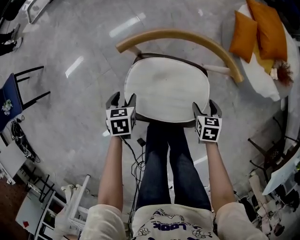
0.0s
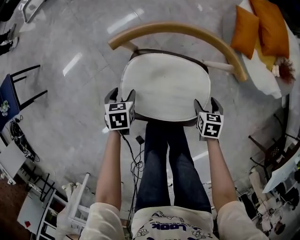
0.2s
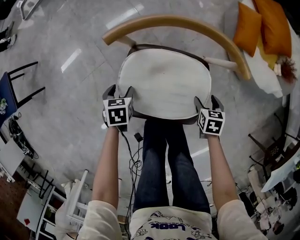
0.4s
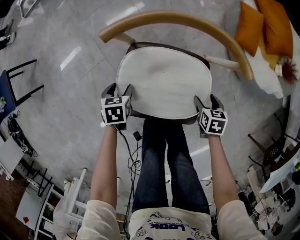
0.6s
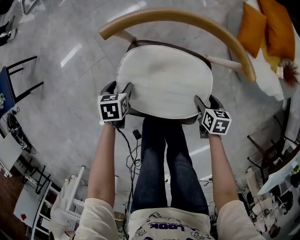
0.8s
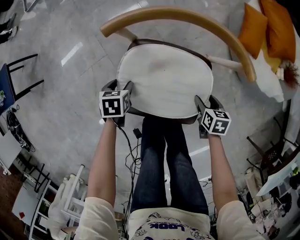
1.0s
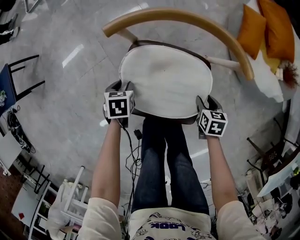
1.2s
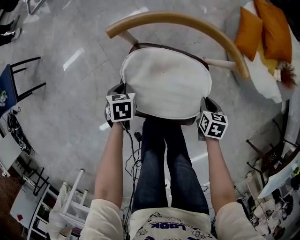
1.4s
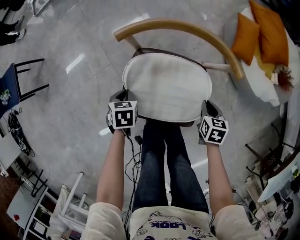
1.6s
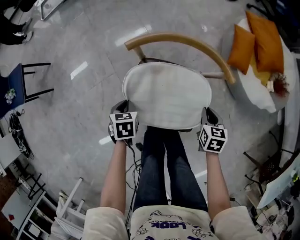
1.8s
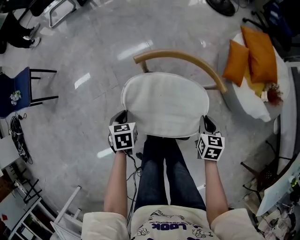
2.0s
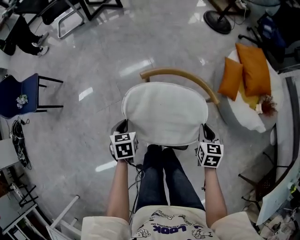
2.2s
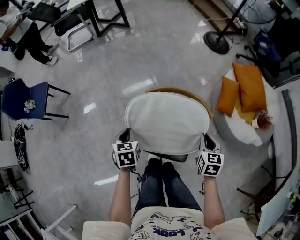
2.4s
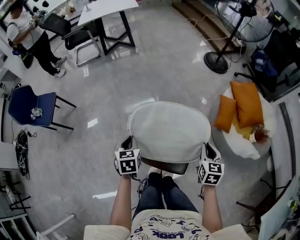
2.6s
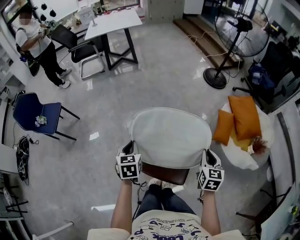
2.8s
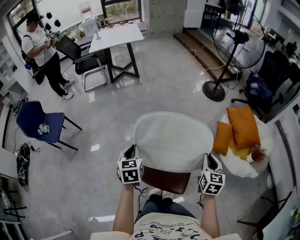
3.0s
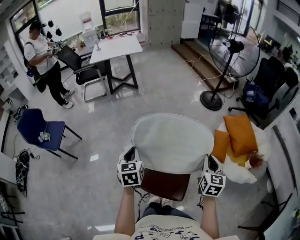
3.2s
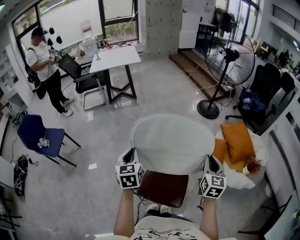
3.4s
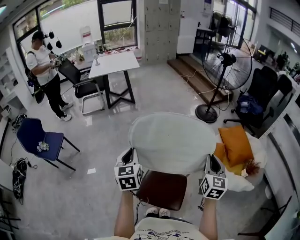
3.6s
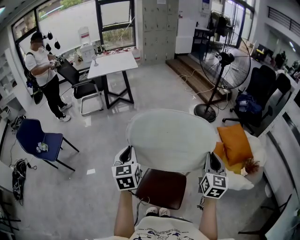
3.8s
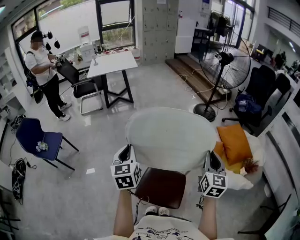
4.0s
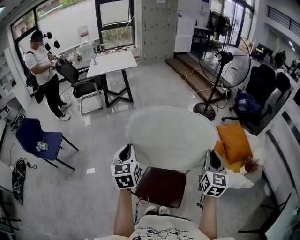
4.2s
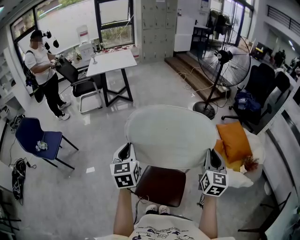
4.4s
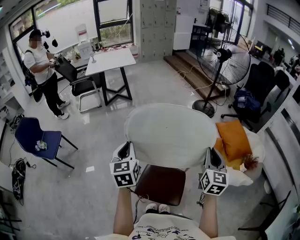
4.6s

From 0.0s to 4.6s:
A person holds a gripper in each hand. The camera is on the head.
From 0.0s to 1.6s: The right gripper goes downward and returns, about 10 cm each way, and closes its fingers, while the left gripper travels downward and back again, about 10 cm each way, and closes.
From 1.6s to 3.0s: The two grippers go approximately 50 cm upward. The left gripper tilts its fingers approximately 40 degrees upward. Meanwhile the right gripper points its fingers about 40 degrees further upward.
From 3.0s to 4.6s: Both grippers travel together upward, roughly 15 cm.

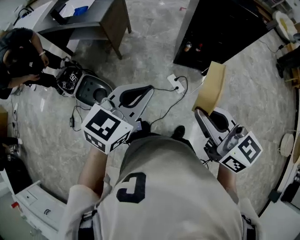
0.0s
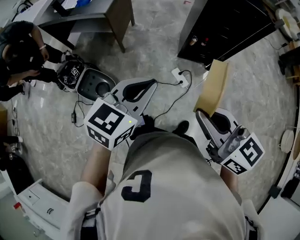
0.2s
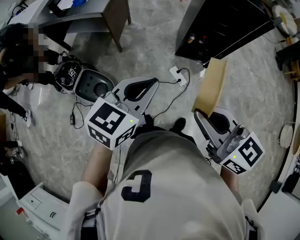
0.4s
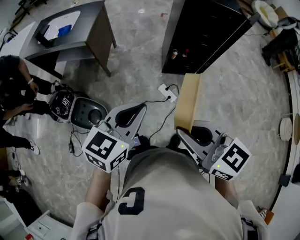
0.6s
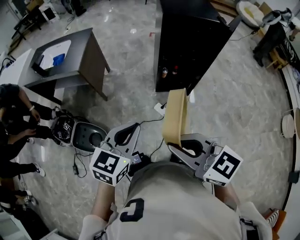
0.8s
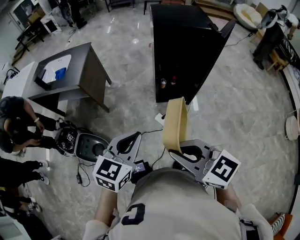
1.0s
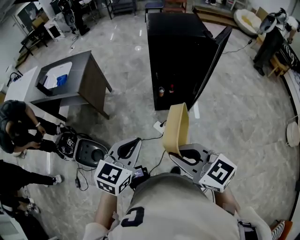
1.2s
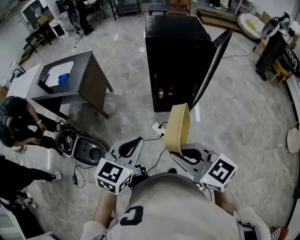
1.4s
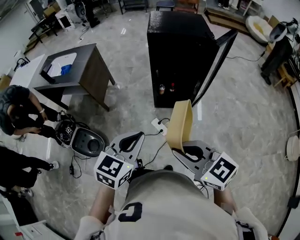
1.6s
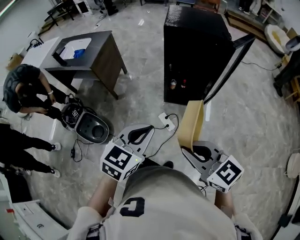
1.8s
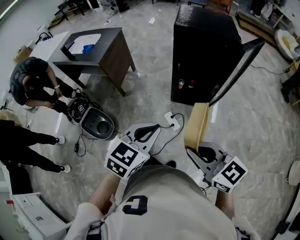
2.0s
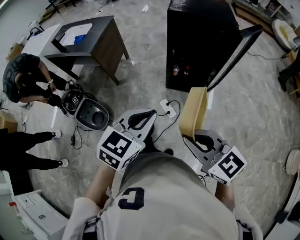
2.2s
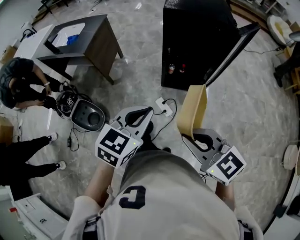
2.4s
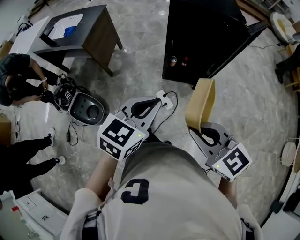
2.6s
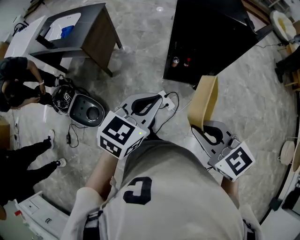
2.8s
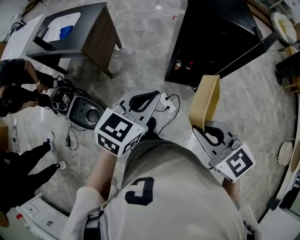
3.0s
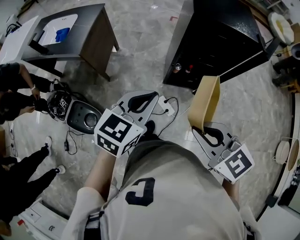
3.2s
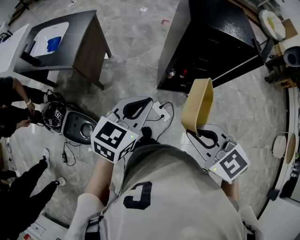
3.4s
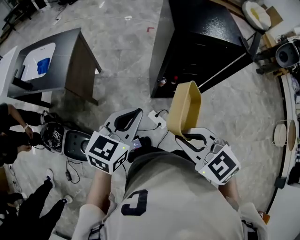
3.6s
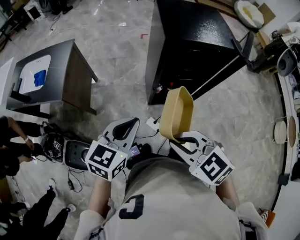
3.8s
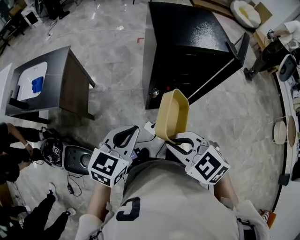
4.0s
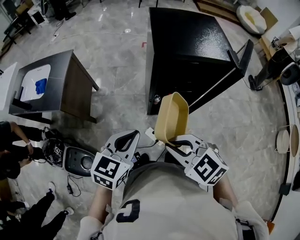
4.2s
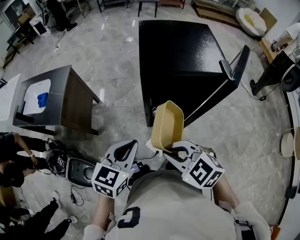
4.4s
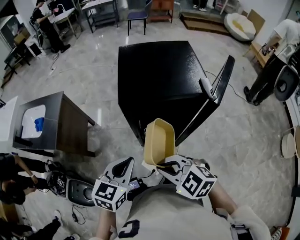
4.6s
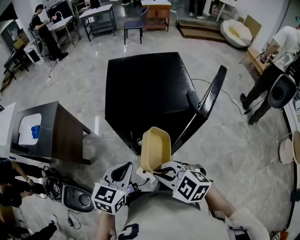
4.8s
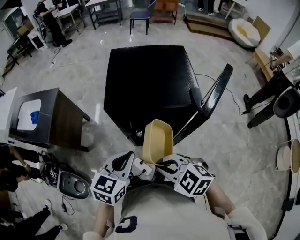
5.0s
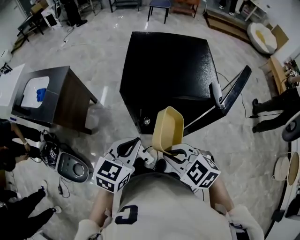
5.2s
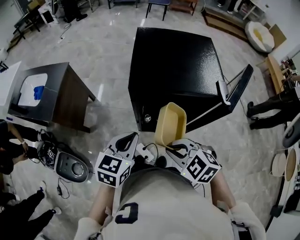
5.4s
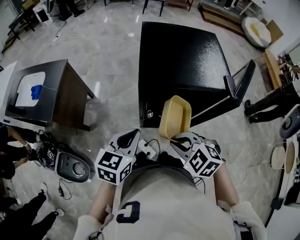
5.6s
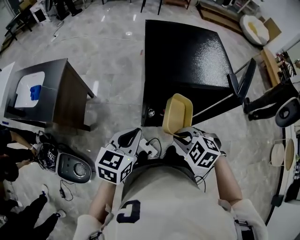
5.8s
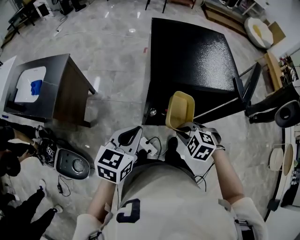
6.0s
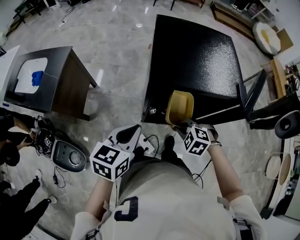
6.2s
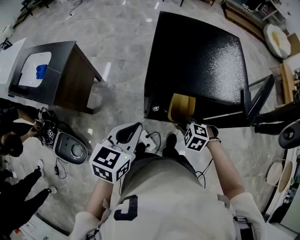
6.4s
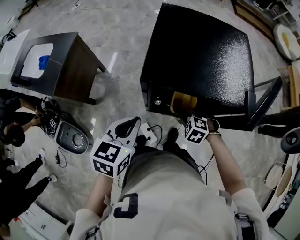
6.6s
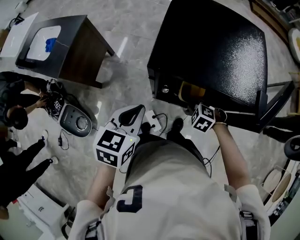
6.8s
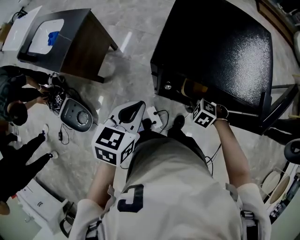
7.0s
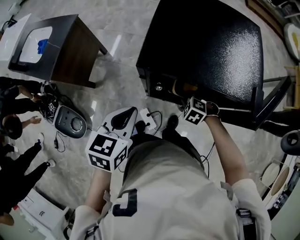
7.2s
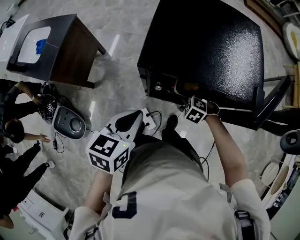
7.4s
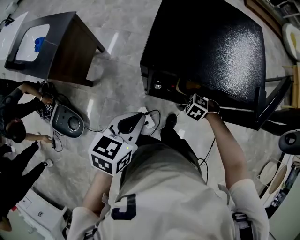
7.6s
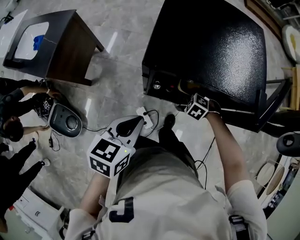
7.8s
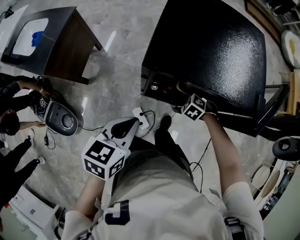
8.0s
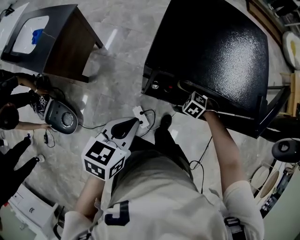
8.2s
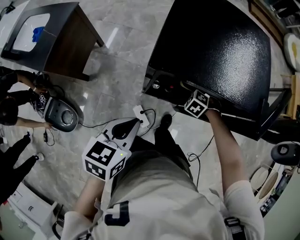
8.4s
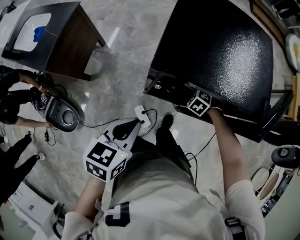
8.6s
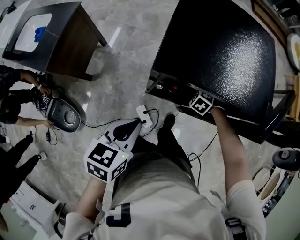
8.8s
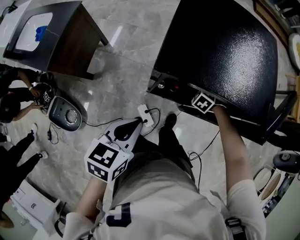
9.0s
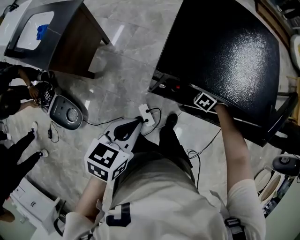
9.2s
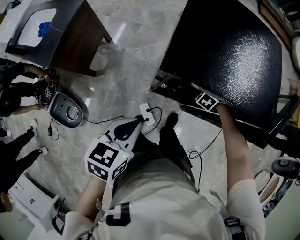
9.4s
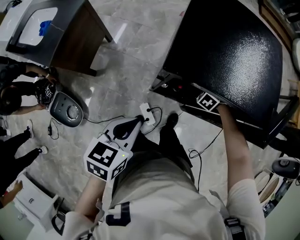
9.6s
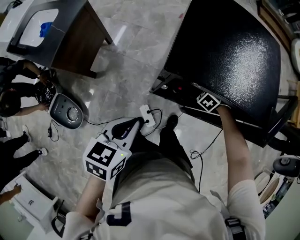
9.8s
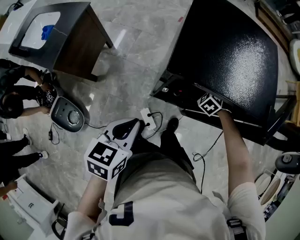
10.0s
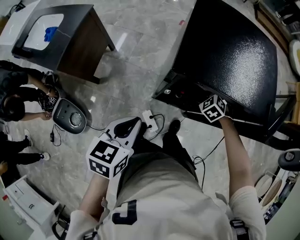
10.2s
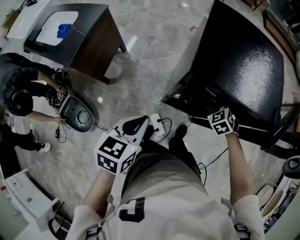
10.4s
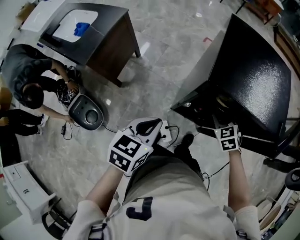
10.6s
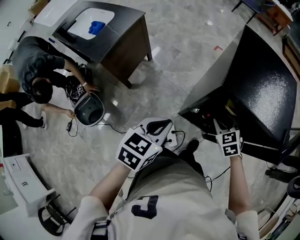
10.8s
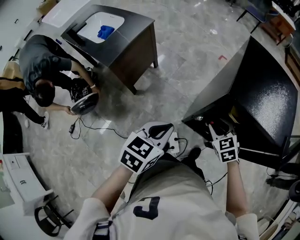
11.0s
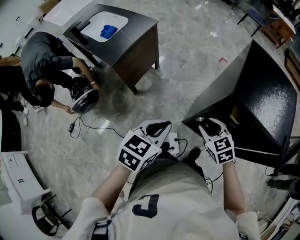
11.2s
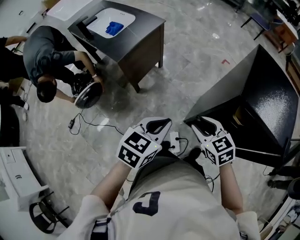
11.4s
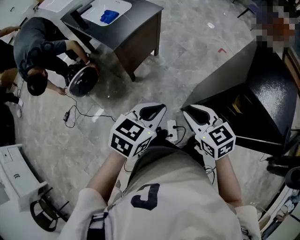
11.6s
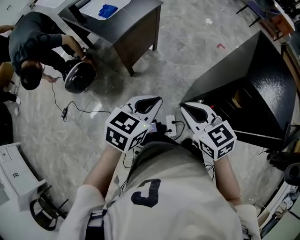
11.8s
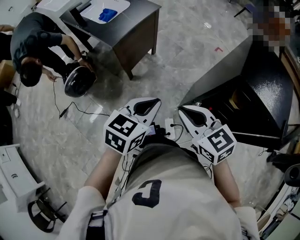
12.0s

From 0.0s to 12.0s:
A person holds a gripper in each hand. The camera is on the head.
From 0.0s to 1.6s: The two grippers go roughly 15 cm to the right.
From 1.6s to 3.0s: The two grippers go roughly 15 cm forward.
From 3.0s to 4.4s: Both grippers move forward, some 15 cm.
From 4.4s to 6.0s: The left gripper is displaced forward by some 10 cm, and goes to the right and returns, about 15 cm each way. Meanwhile the right gripper shifts some 20 cm downward, to the right and forward, and rotates roughly 30 degrees.
From 6.0s to 7.6s: The left gripper ends up about 10 cm from where it was. The right gripper travels downward by roughly 20 cm.
From 7.6s to 9.0s: The right gripper ends up about 10 cm from where it was.
From 9.0s to 10.4s: The left gripper shifts by approximately 5 cm; the right gripper is displaced upward by approximately 10 cm, rotates approximately 20 degrees, and opens.
From 10.4s to 12.0s: The right gripper changes place by roughly 40 cm, rotates some 50 degrees, and closes its fingers; the left gripper ends up approximately 15 cm from where it was.

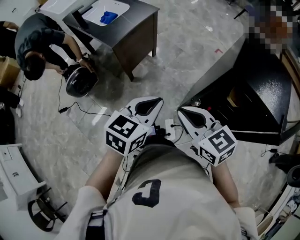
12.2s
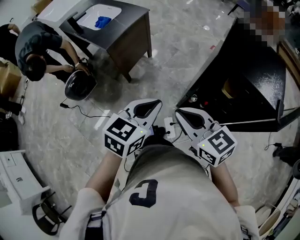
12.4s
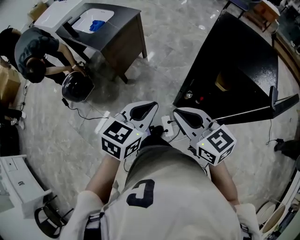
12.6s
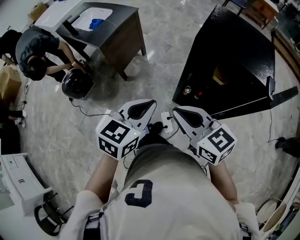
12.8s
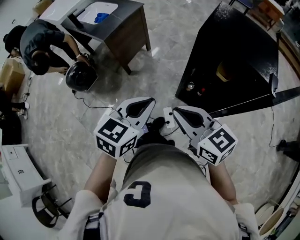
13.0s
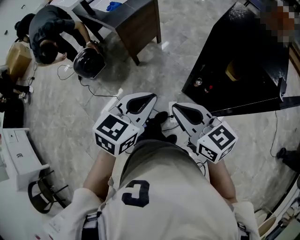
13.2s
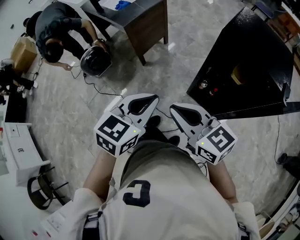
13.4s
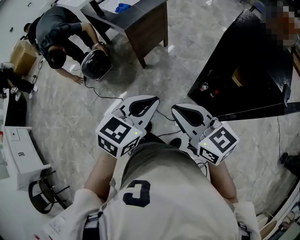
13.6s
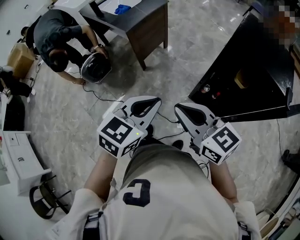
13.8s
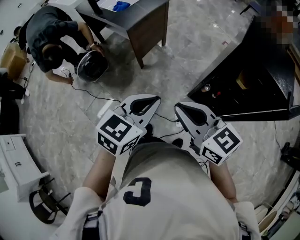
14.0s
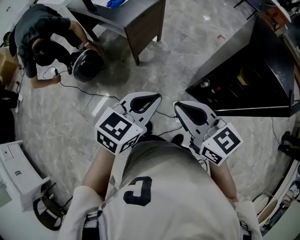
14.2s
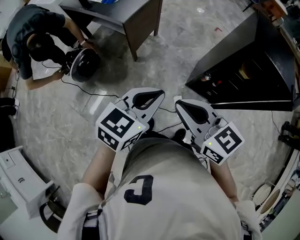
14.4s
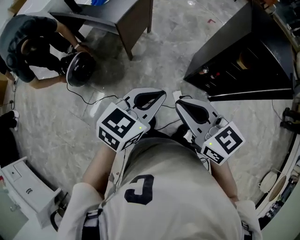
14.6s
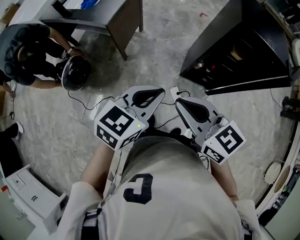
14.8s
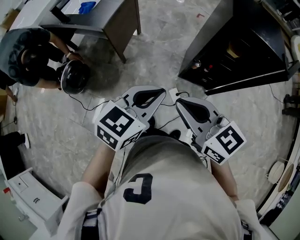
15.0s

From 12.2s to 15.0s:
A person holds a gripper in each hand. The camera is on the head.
From 12.2s to 13.6s: Both grippers travel together backward, approximately 15 cm.
From 13.6s to 15.0s: Both grippers travel together to the left, some 10 cm. The left gripper turns by about 30 degrees. The right gripper swivels approximately 20 degrees.

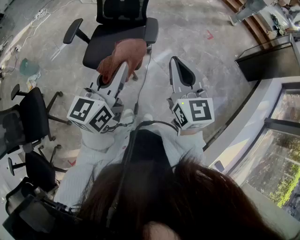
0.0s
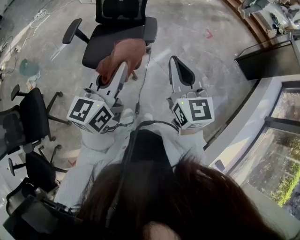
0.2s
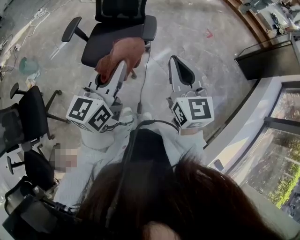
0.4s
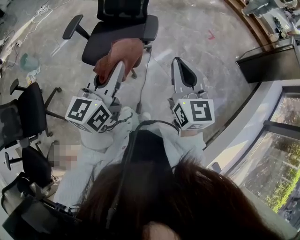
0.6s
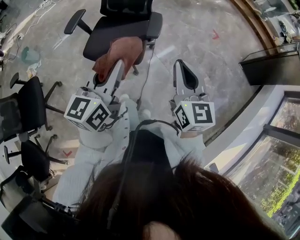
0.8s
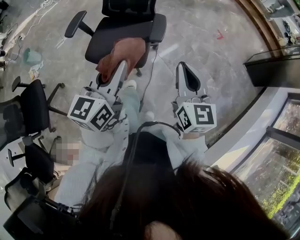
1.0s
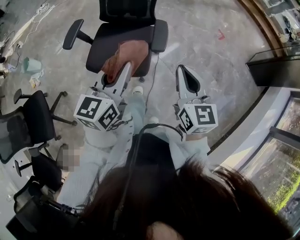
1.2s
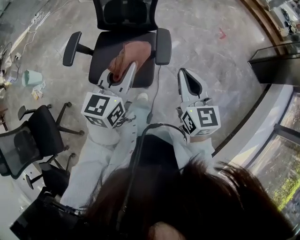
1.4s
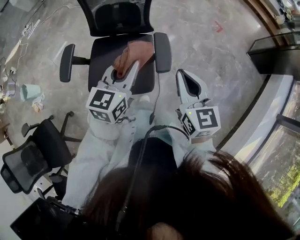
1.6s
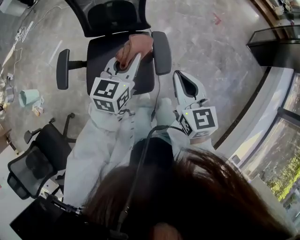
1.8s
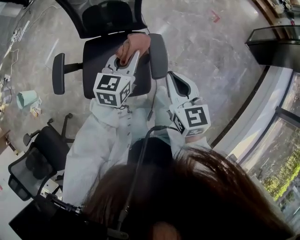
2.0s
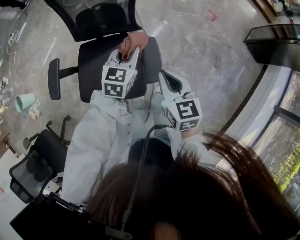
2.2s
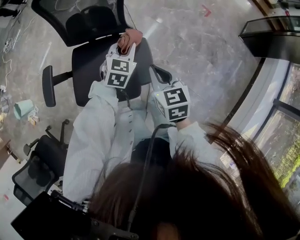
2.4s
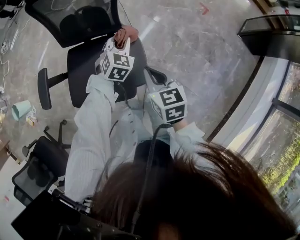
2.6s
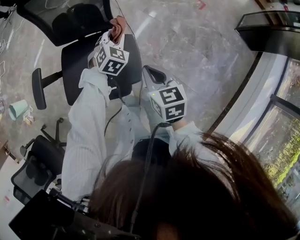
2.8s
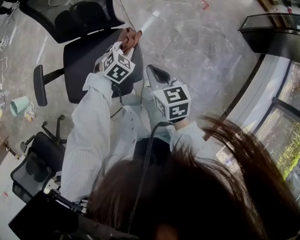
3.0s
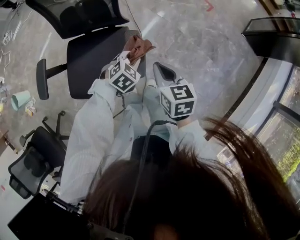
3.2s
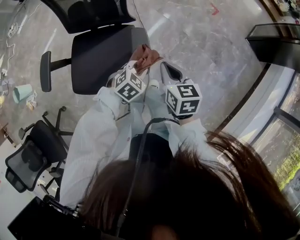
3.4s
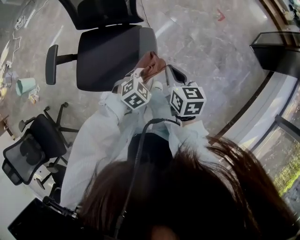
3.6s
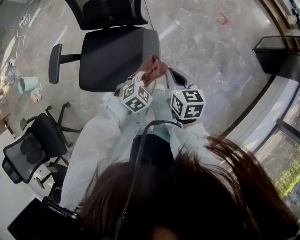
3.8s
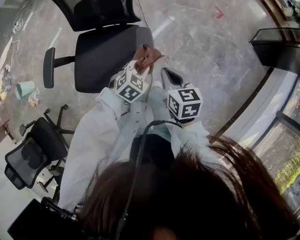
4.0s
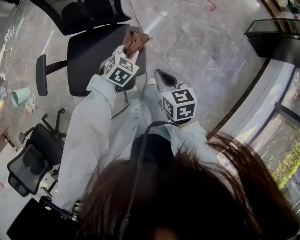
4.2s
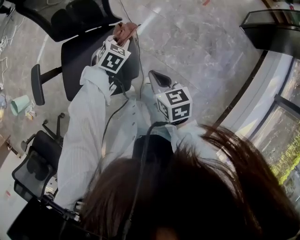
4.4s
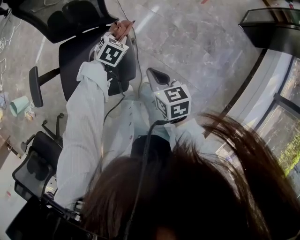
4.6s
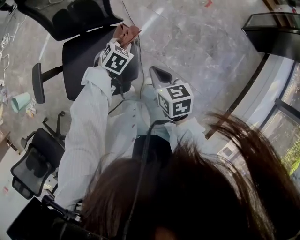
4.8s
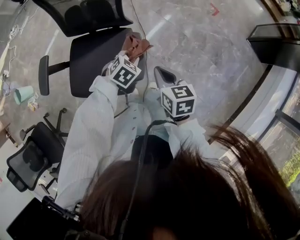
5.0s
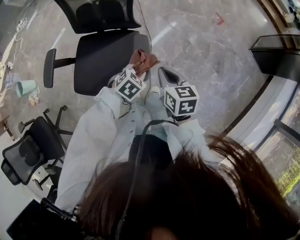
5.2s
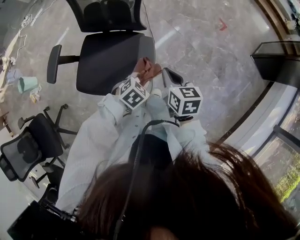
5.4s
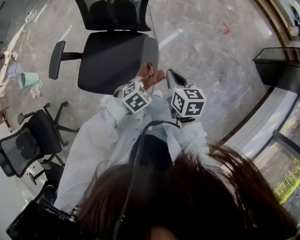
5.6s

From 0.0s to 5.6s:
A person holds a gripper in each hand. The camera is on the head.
From 0.0s to 1.4s: The right gripper goes about 25 cm forward and downward, while the left gripper moves forward, about 25 cm.
From 1.4s to 2.8s: The left gripper travels forward and downward by approximately 40 cm, and rolls clockwise, seen from behind, by approximately 40 degrees, while the right gripper shifts approximately 25 cm forward and downward, and turns by about 30 degrees.
From 2.8s to 4.2s: The right gripper moves about 5 cm. The left gripper goes some 10 cm backward.
From 4.2s to 5.6s: The left gripper is displaced backward by about 15 cm.
